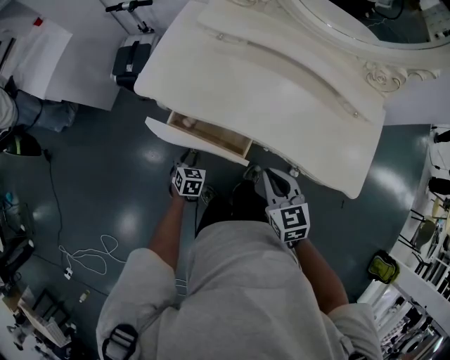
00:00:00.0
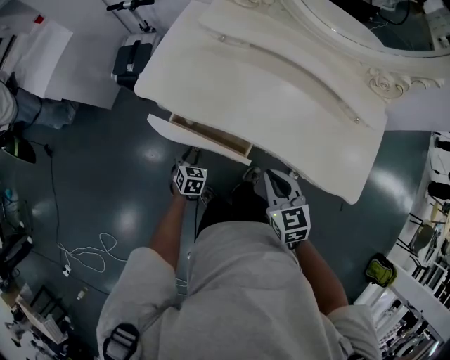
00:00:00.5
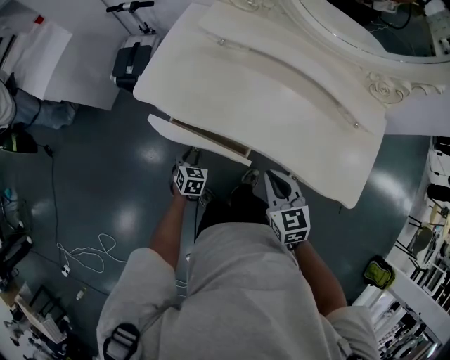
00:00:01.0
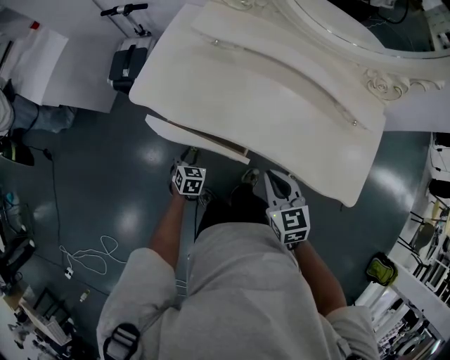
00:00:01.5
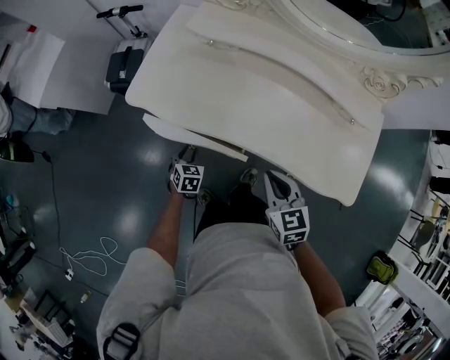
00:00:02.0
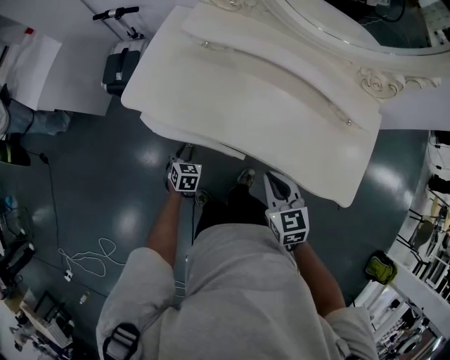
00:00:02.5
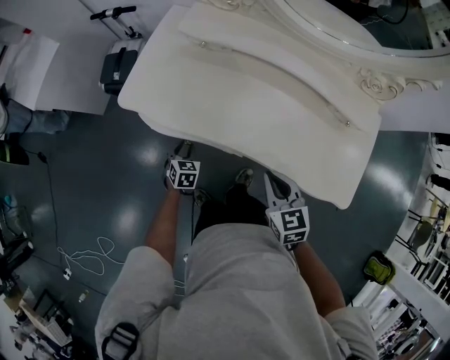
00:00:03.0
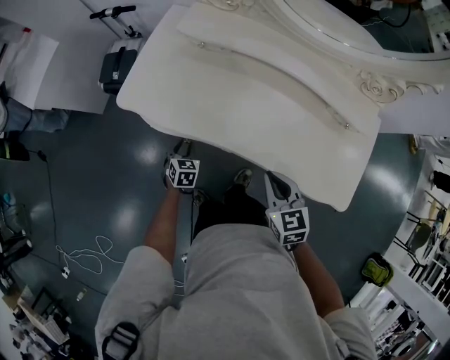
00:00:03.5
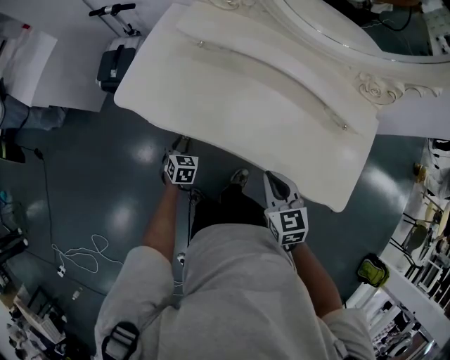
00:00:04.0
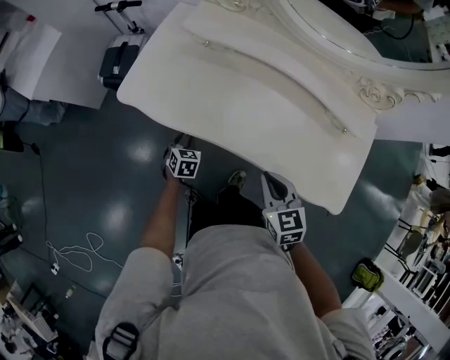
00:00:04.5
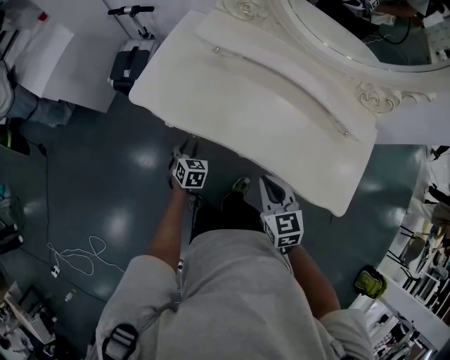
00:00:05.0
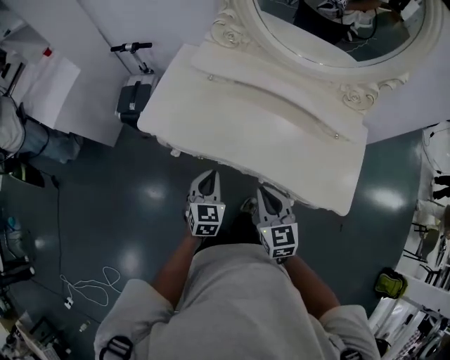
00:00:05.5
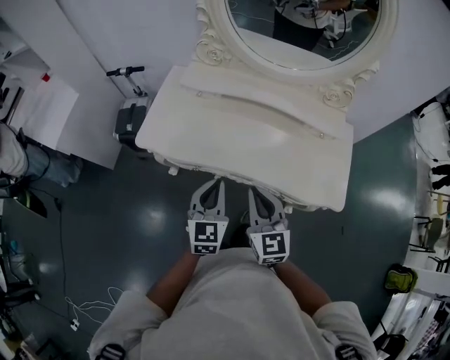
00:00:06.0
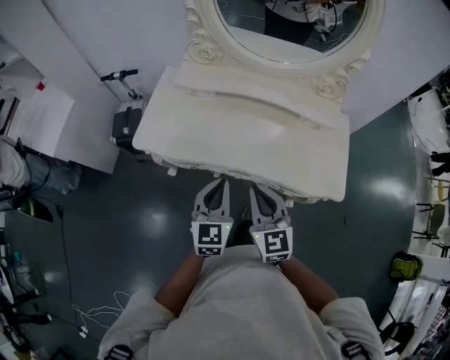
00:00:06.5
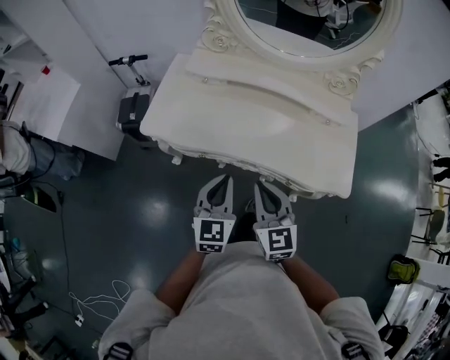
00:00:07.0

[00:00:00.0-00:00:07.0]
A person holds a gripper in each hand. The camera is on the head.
00:00:00.0 to 00:00:02.0: The left gripper ends up some 5 cm from where it was.
00:00:02.0 to 00:00:05.0: There are only small adjustments of the grippers.
00:00:05.0 to 00:00:07.0: The right gripper travels upward and backward by roughly 15 cm, and rotates some 20 degrees. Meanwhile the left gripper is displaced upward by some 30 cm, tips its fingers upward by about 40 degrees, and closes.

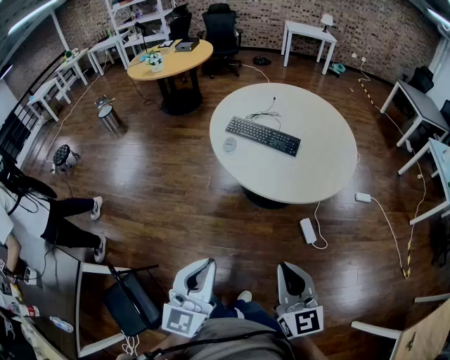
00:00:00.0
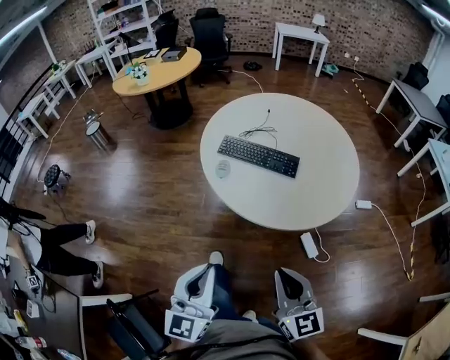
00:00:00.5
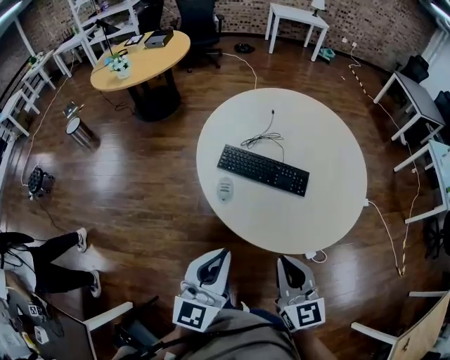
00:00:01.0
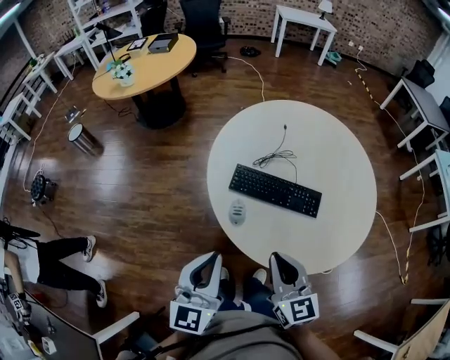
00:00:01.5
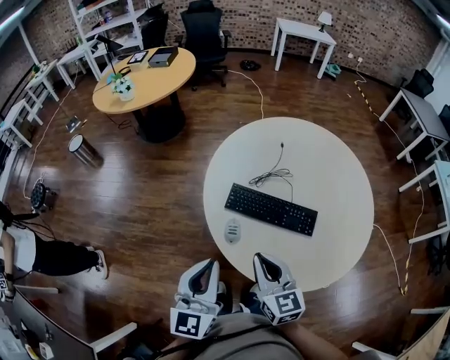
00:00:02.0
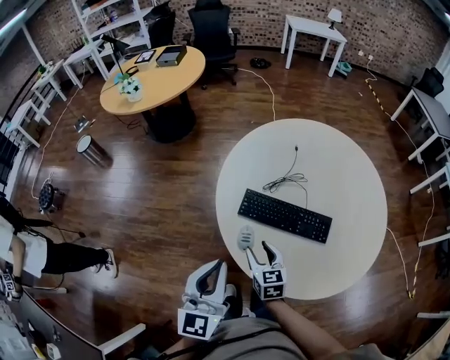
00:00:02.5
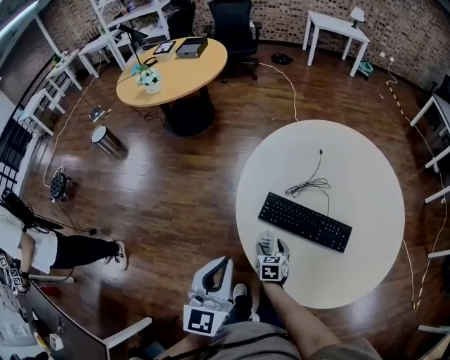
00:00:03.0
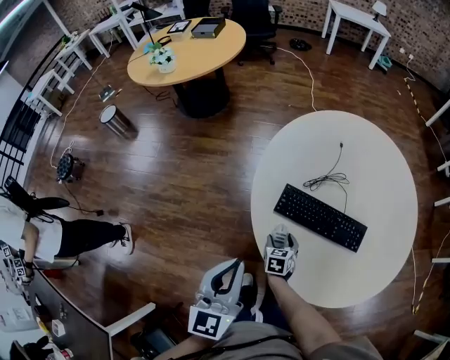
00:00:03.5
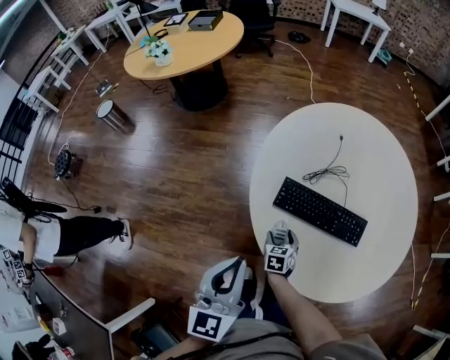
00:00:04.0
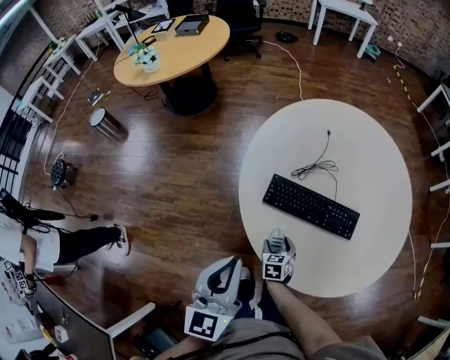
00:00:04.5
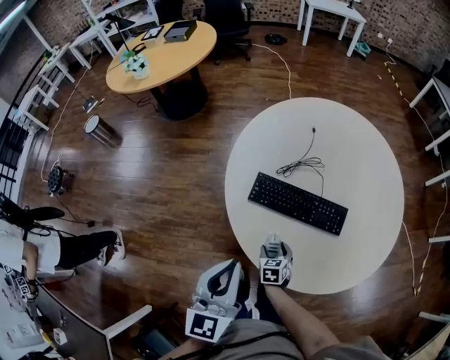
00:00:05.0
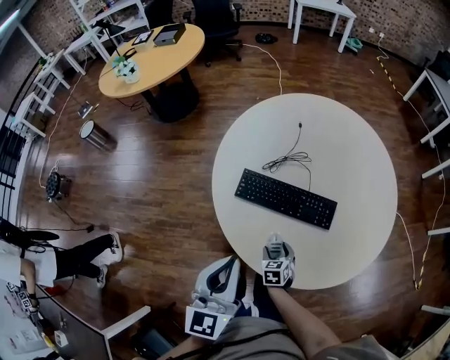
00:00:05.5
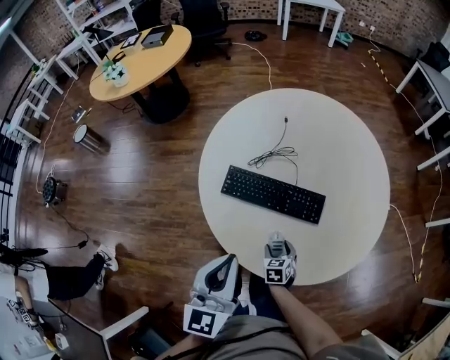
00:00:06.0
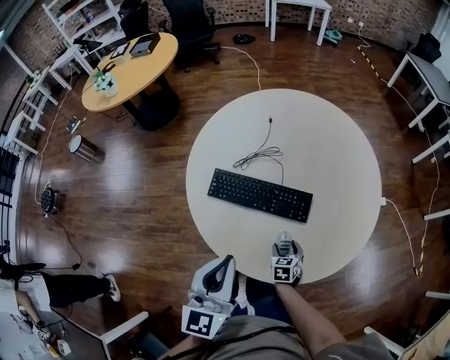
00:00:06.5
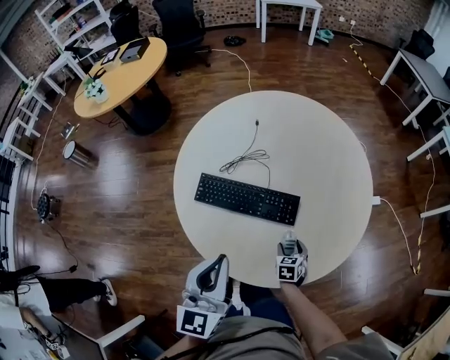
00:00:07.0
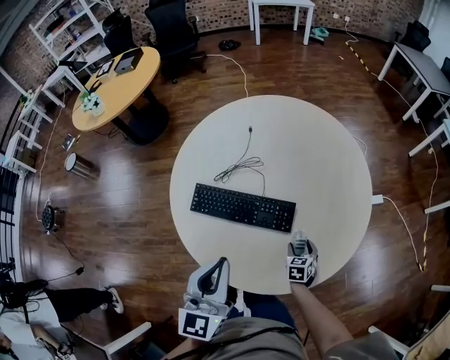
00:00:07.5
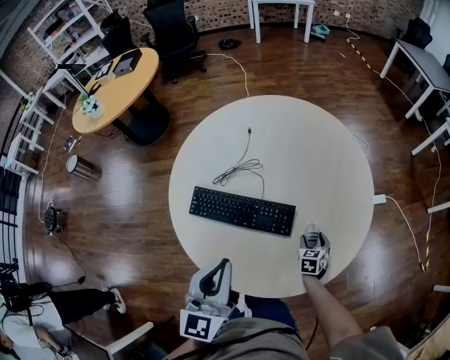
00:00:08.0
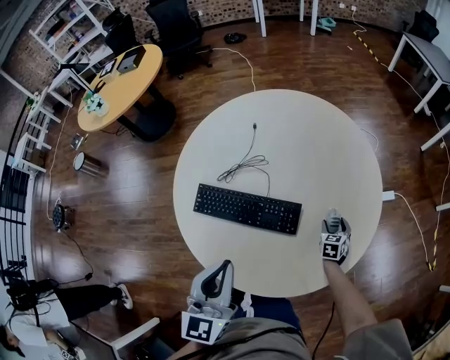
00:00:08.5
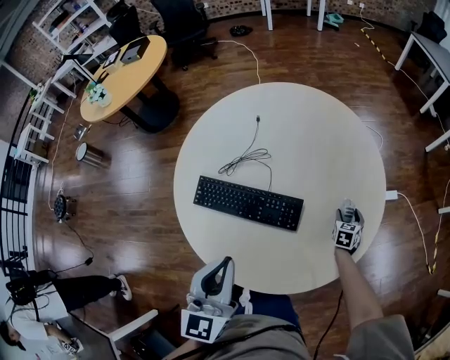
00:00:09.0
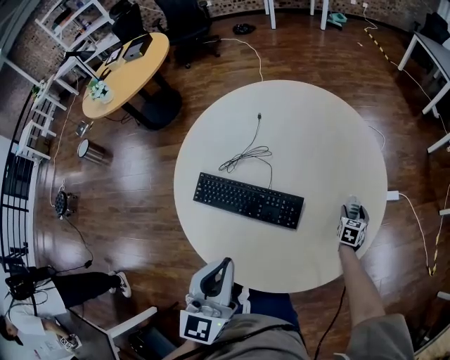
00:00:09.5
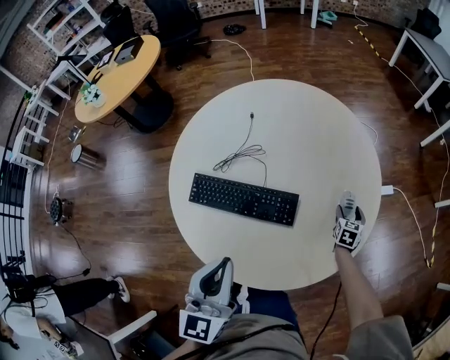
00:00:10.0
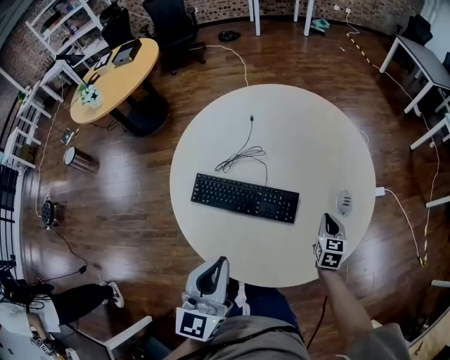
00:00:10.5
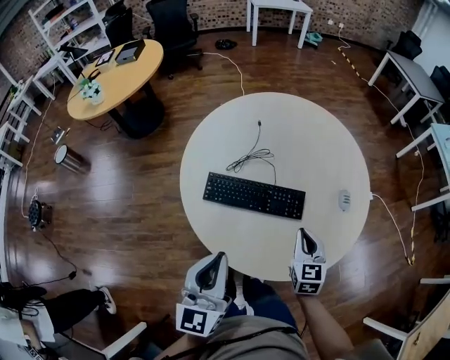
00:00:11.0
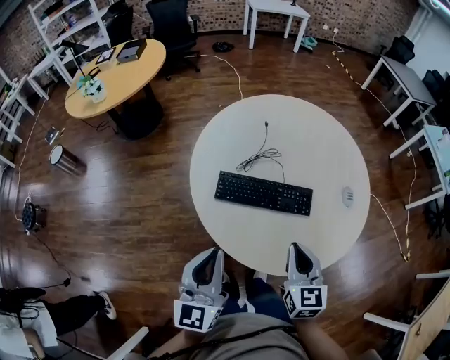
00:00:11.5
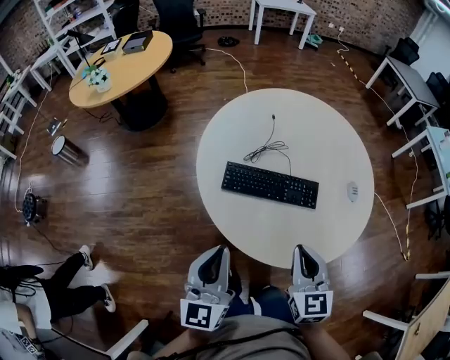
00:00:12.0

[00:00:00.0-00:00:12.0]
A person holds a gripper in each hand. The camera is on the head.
00:00:00.0 to 00:00:02.0: Both grippers are carried forward, approximately 50 cm.
00:00:02.0 to 00:00:04.0: The left gripper heads to the left and forward, covering some 10 cm; the right gripper heads downward, covering roughly 35 cm, points its fingers roughly 40 degrees further downward, and opens up.
00:00:04.0 to 00:00:06.0: The right gripper moves to the right and backward, some 20 cm; the left gripper is displaced to the right by some 15 cm.
00:00:06.0 to 00:00:08.0: The right gripper travels to the right and forward by about 30 cm; the left gripper shifts about 15 cm to the right and forward.
00:00:08.0 to 00:00:10.0: The right gripper travels to the right and forward by approximately 15 cm.
00:00:10.0 to 00:00:12.0: The right gripper is displaced to the left, upward and backward by some 60 cm, swivels approximately 30 degrees, and closes up. Meanwhile the left gripper moves to the left and backward, approximately 25 cm.

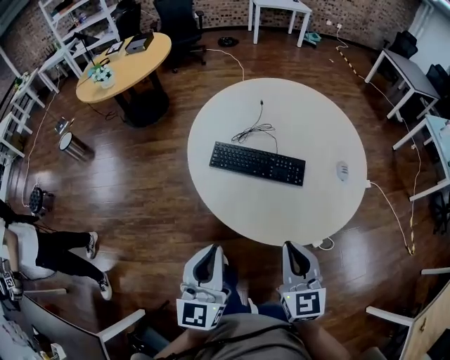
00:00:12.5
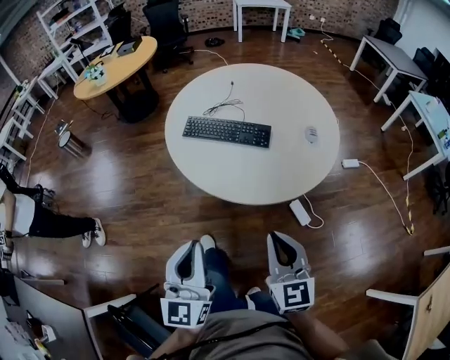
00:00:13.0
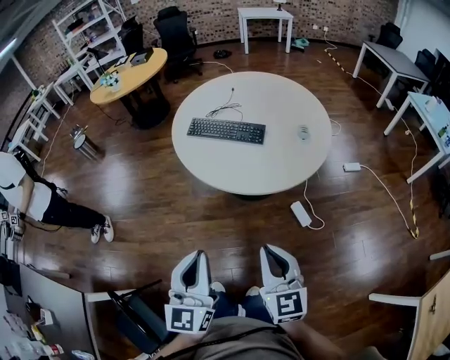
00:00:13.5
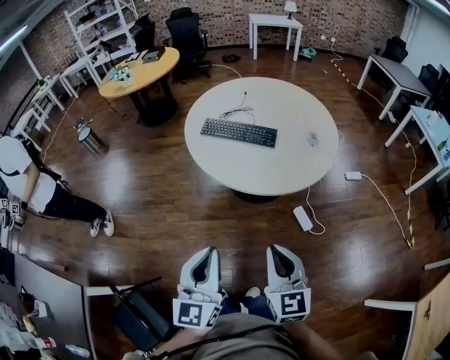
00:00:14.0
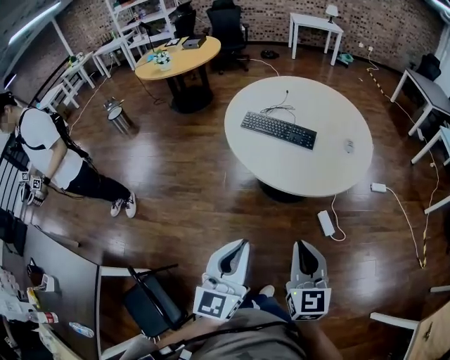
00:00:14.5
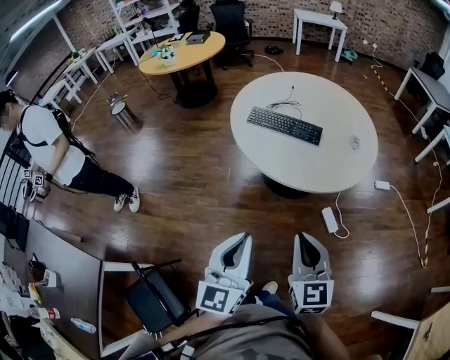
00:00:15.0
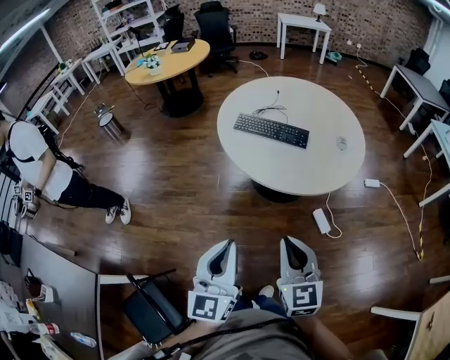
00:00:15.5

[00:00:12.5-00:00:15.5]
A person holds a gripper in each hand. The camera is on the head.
00:00:12.5 to 00:00:14.0: Both grippers travel together backward, roughly 30 cm.
00:00:14.0 to 00:00:15.5: Both grippers move to the left, roughly 10 cm.

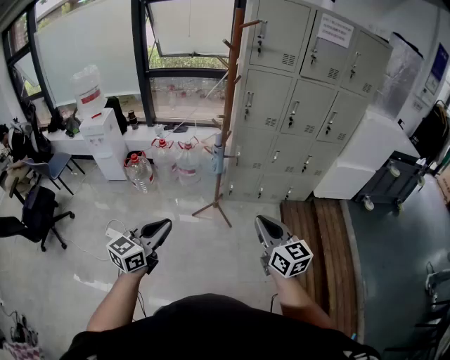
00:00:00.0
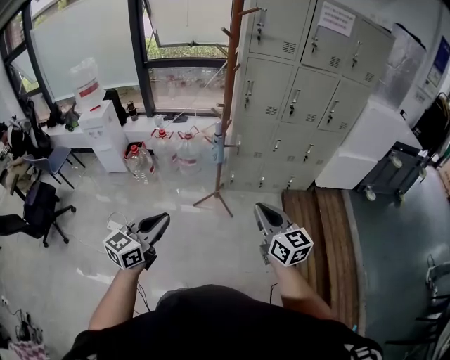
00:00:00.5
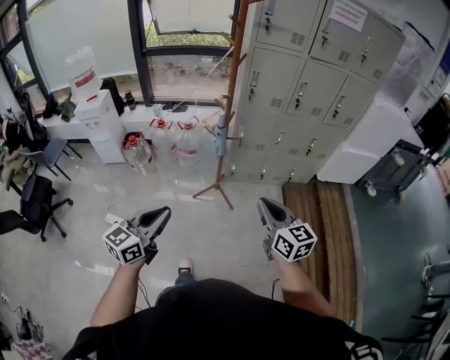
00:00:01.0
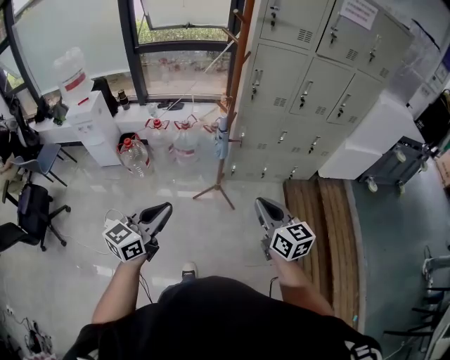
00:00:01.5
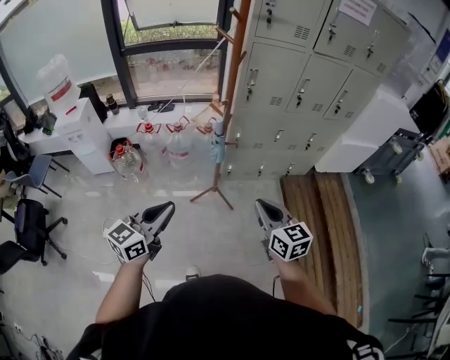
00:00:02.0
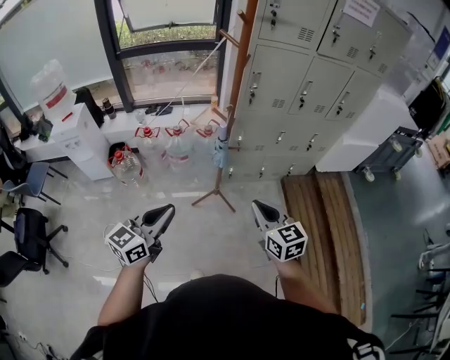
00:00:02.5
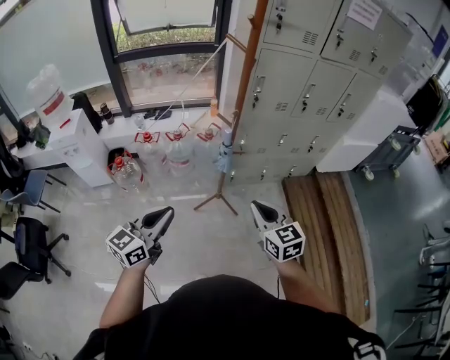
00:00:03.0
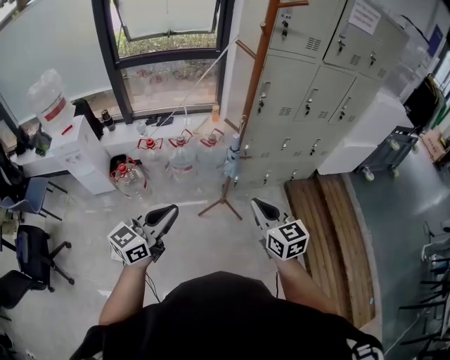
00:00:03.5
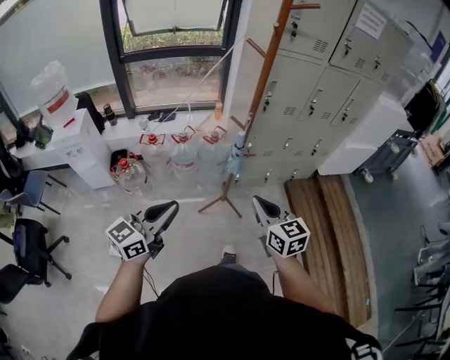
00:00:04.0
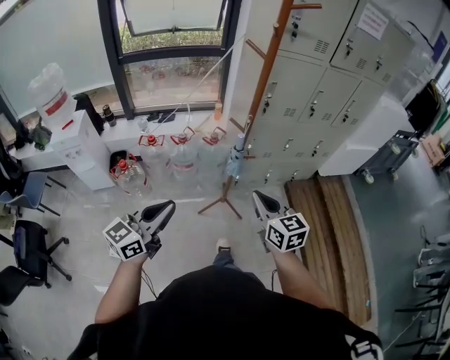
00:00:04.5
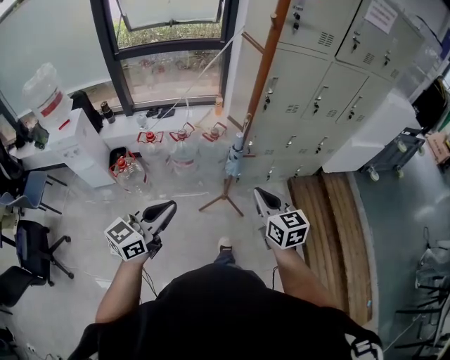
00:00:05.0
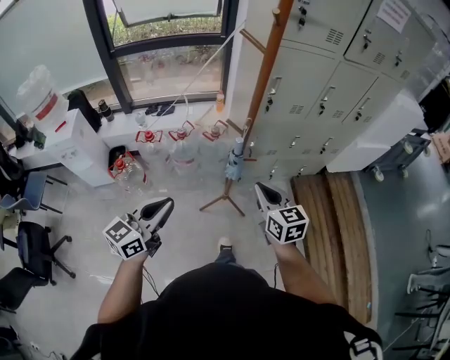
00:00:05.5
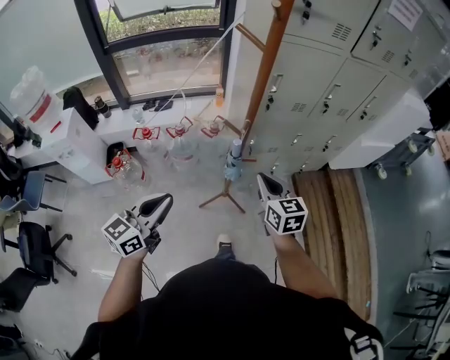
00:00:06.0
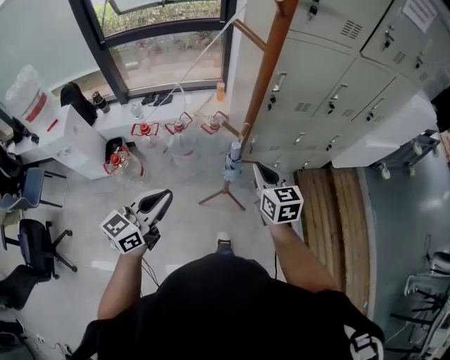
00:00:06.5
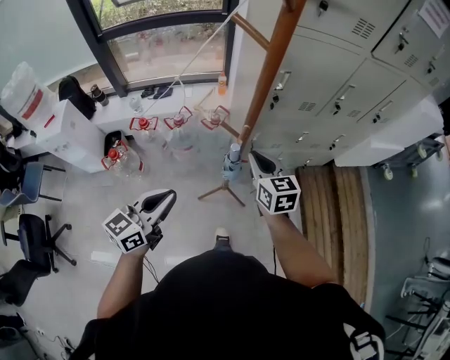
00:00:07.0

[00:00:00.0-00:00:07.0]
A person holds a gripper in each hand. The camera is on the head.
00:00:00.0 to 00:00:02.0: Both grippers travel together forward and to the left, approximately 20 cm.
00:00:02.0 to 00:00:03.5: The left gripper is displaced to the left and forward by some 15 cm; the right gripper heads to the left, covering roughly 15 cm.
00:00:03.5 to 00:00:05.0: Both grippers travel together forward, roughly 10 cm.
00:00:05.0 to 00:00:07.0: Both grippers move forward, some 25 cm.
